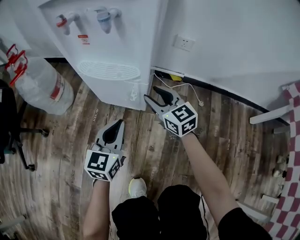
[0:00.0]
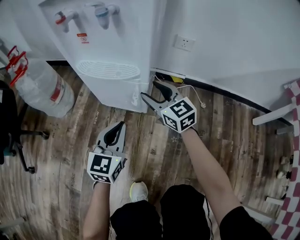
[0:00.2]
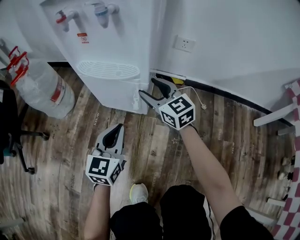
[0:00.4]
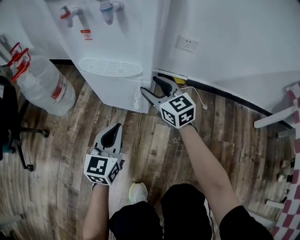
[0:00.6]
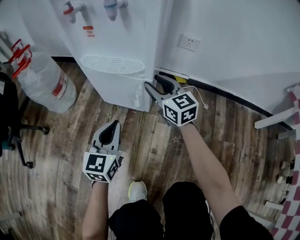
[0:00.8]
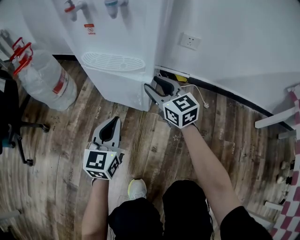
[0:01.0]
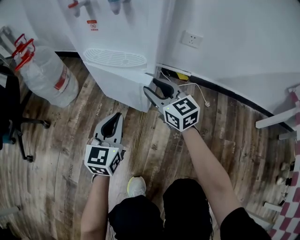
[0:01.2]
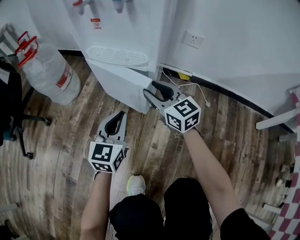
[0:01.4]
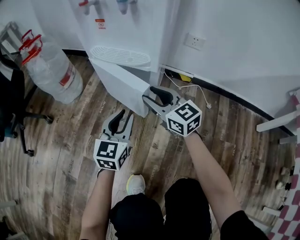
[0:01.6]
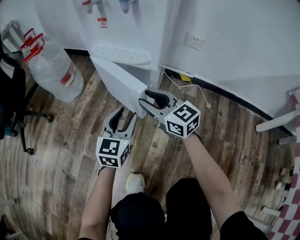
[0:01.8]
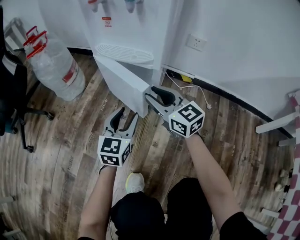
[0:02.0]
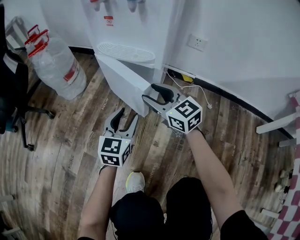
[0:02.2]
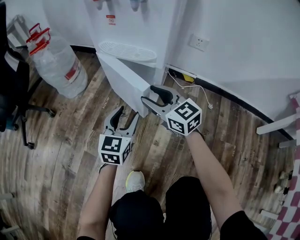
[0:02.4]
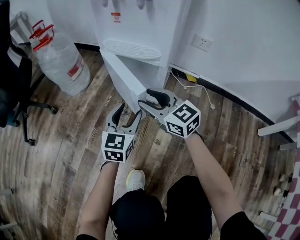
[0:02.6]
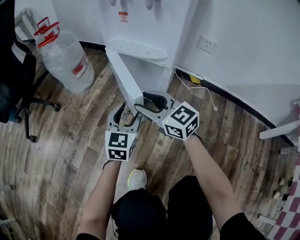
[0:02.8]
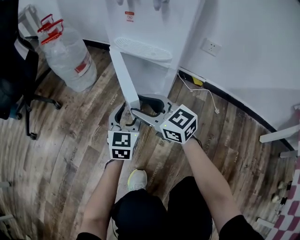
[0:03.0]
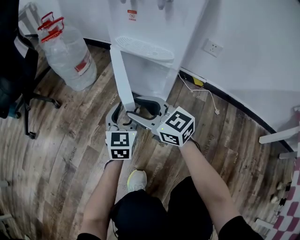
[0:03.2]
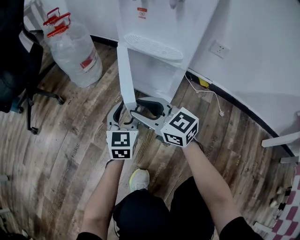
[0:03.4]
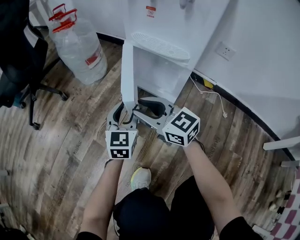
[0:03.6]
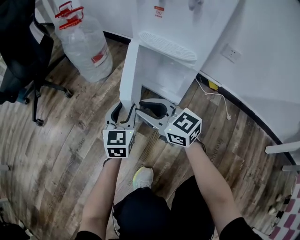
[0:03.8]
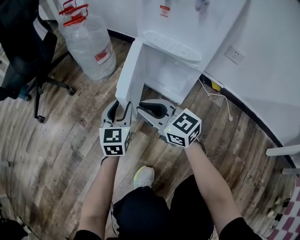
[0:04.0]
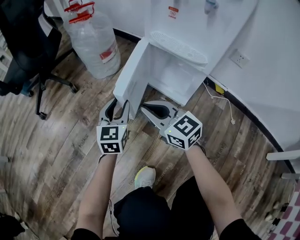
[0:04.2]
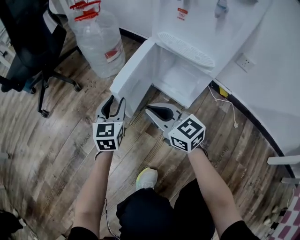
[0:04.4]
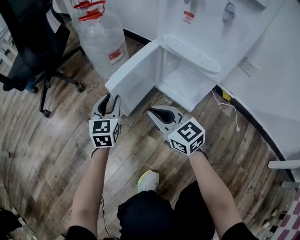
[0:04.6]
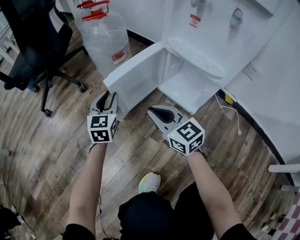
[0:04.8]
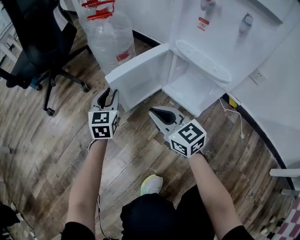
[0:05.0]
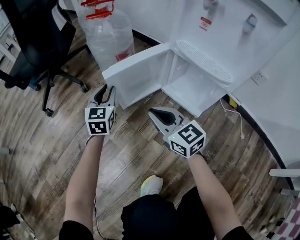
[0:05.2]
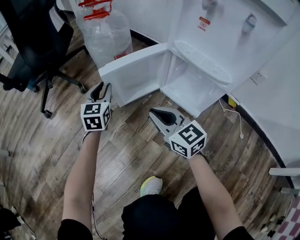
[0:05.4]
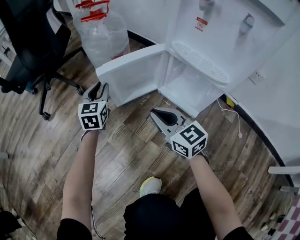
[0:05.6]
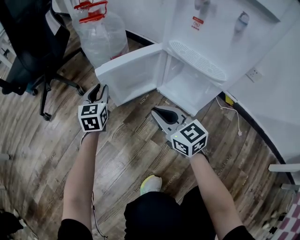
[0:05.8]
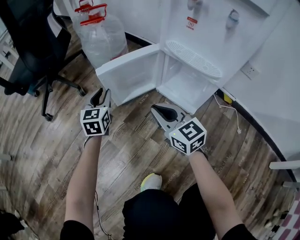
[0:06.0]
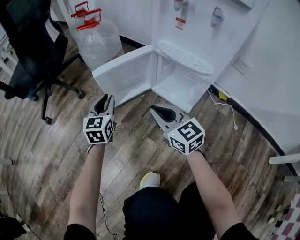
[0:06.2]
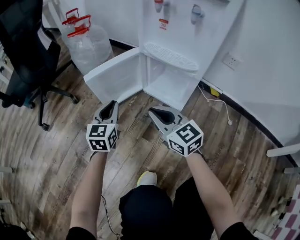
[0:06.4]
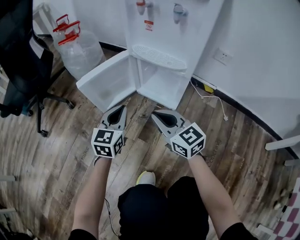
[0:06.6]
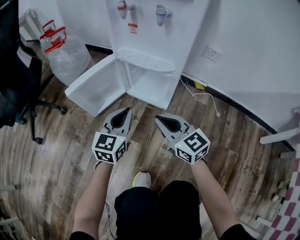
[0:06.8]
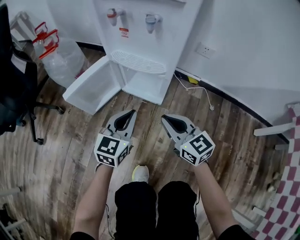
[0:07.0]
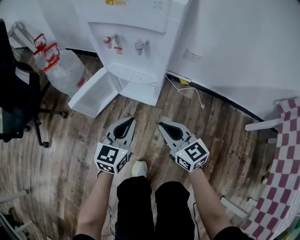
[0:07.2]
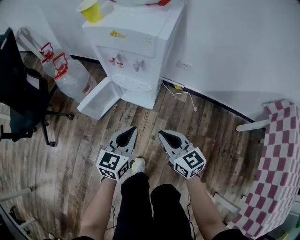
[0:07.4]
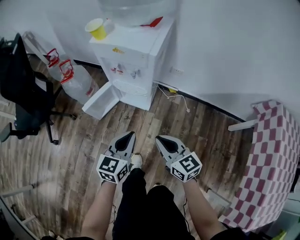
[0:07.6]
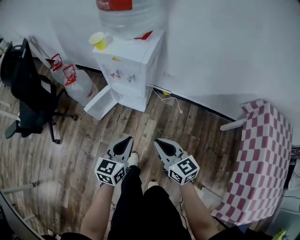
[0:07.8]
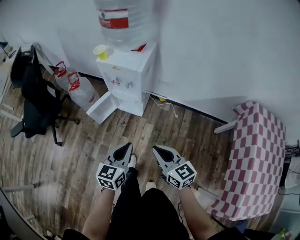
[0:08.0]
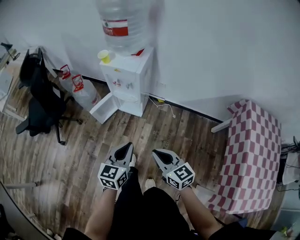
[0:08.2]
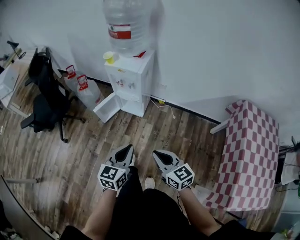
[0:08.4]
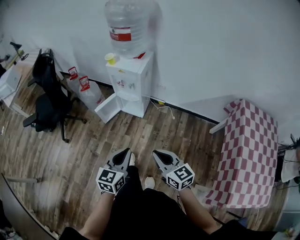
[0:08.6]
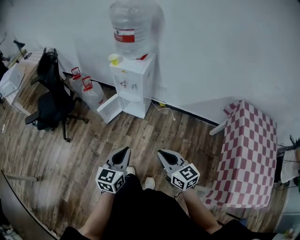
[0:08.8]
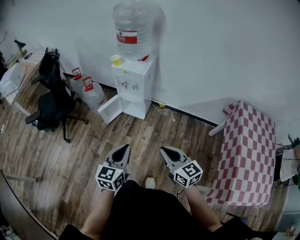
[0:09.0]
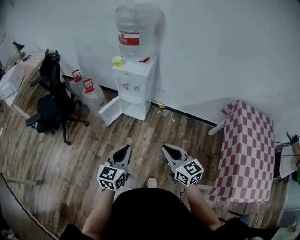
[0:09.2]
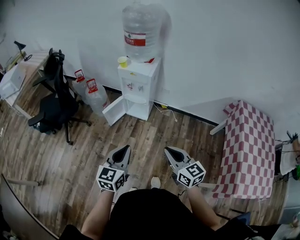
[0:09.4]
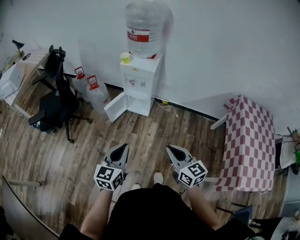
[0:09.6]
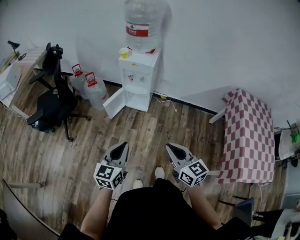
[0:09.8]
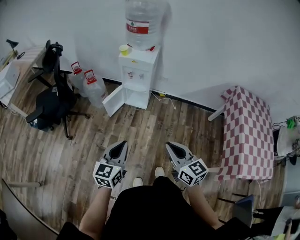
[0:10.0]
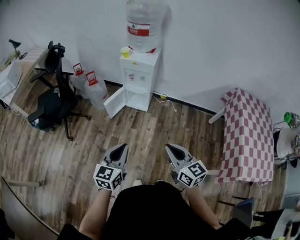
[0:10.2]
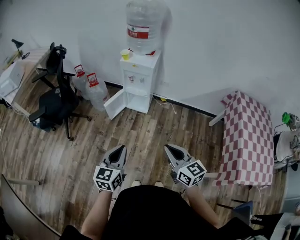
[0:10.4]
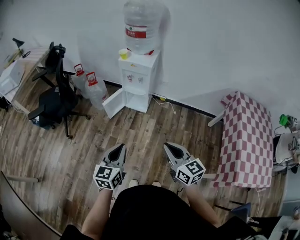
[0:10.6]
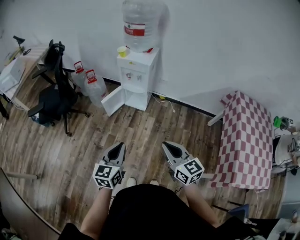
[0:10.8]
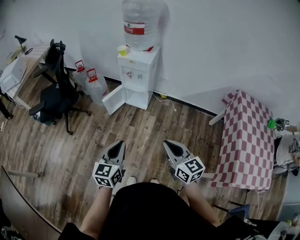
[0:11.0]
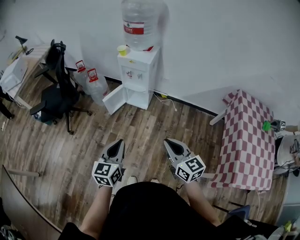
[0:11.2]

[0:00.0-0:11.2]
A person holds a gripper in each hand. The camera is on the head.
0:00.0 to 0:01.6: The right gripper ends up about 5 cm from where it was.
0:01.6 to 0:03.2: The right gripper is displaced to the left by roughly 15 cm, and swivels roughly 20 degrees; the left gripper moves to the left, roughly 5 cm, and opens its fingers.
0:03.2 to 0:04.8: The right gripper heads to the left and forward, covering about 10 cm, and closes up. The left gripper shifts roughly 25 cm to the left and forward, and closes up.
0:04.8 to 0:06.4: The left gripper goes about 10 cm backward and to the right, while the right gripper changes place by some 5 cm.
0:06.4 to 0:08.0: The two grippers go roughly 50 cm upward. The right gripper rotates approximately 20 degrees, while the left gripper turns by about 30 degrees.
0:08.0 to 0:09.6: The right gripper goes some 25 cm backward and upward; the left gripper travels backward, upward and to the left by approximately 25 cm.
0:09.6 to 0:11.2: The left gripper ends up roughly 5 cm from where it was; the right gripper ends up approximately 5 cm from where it was.

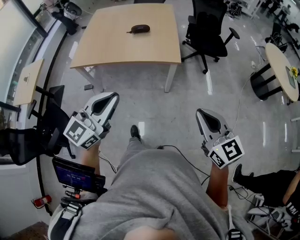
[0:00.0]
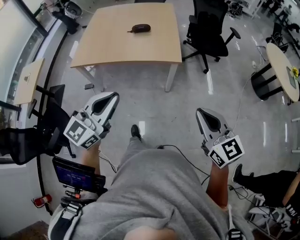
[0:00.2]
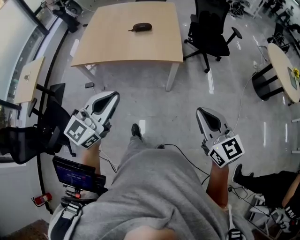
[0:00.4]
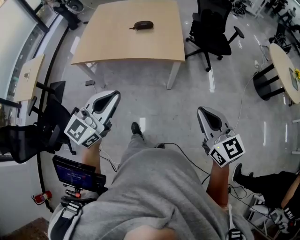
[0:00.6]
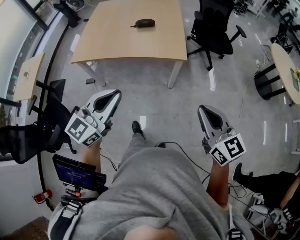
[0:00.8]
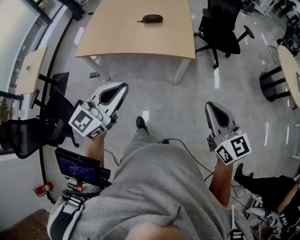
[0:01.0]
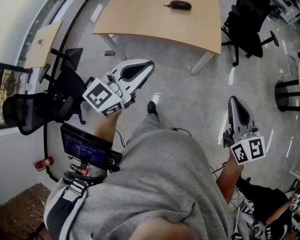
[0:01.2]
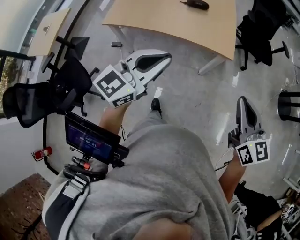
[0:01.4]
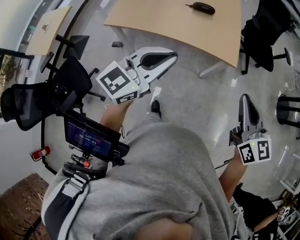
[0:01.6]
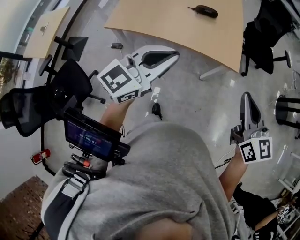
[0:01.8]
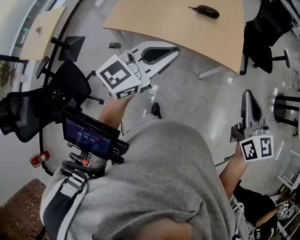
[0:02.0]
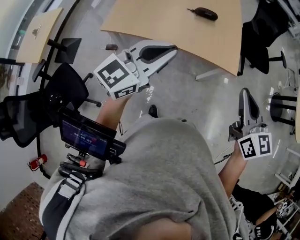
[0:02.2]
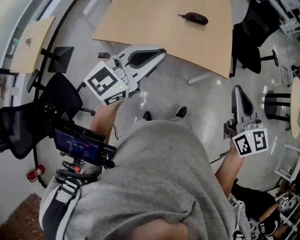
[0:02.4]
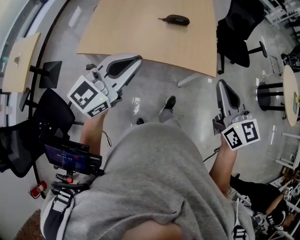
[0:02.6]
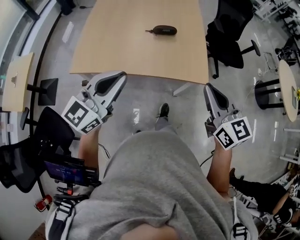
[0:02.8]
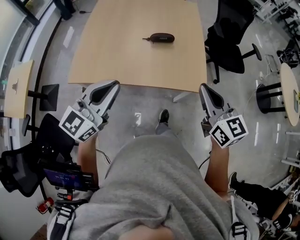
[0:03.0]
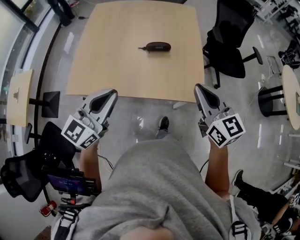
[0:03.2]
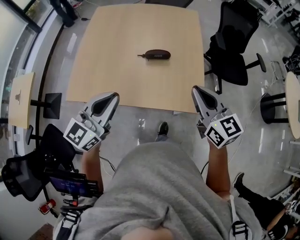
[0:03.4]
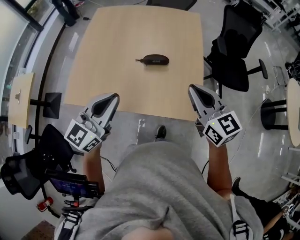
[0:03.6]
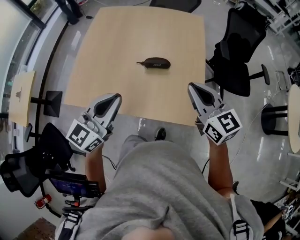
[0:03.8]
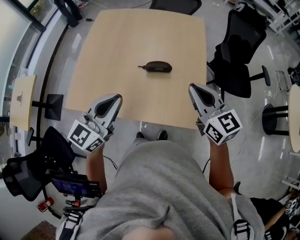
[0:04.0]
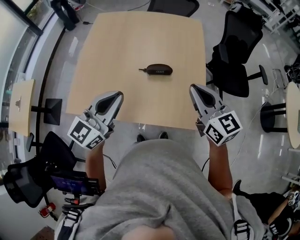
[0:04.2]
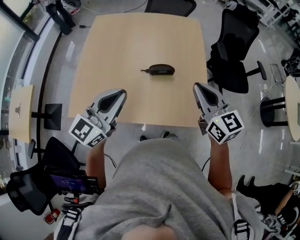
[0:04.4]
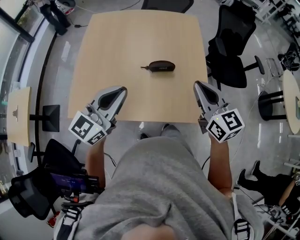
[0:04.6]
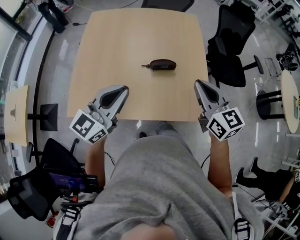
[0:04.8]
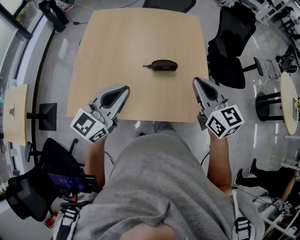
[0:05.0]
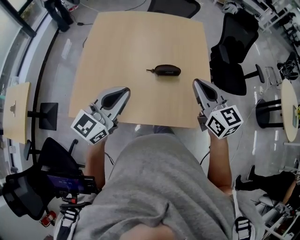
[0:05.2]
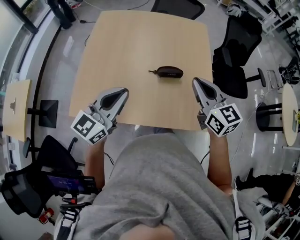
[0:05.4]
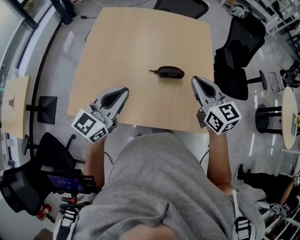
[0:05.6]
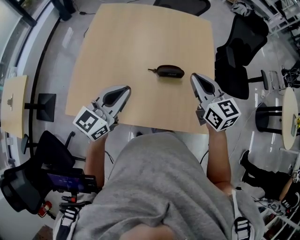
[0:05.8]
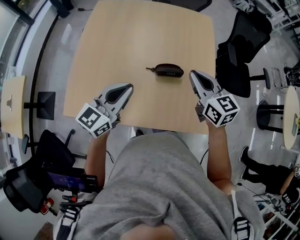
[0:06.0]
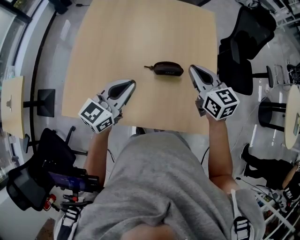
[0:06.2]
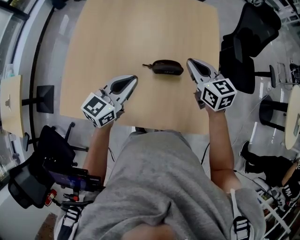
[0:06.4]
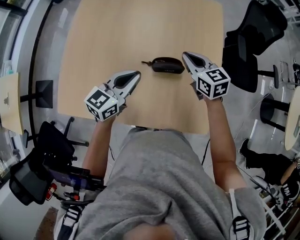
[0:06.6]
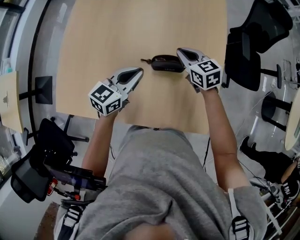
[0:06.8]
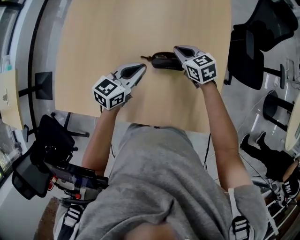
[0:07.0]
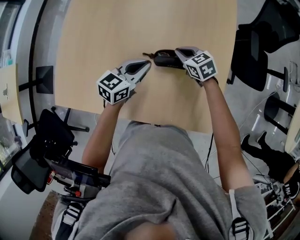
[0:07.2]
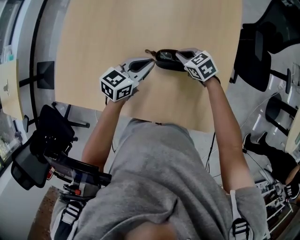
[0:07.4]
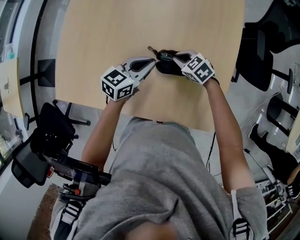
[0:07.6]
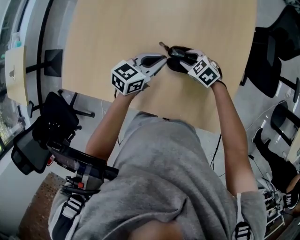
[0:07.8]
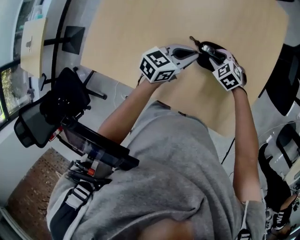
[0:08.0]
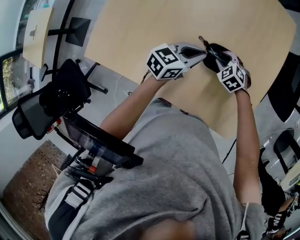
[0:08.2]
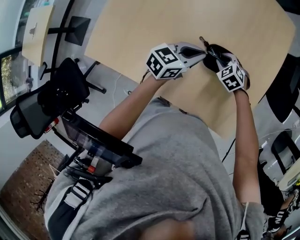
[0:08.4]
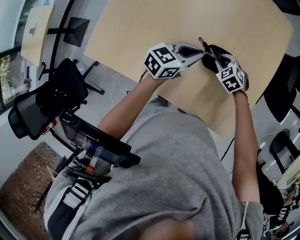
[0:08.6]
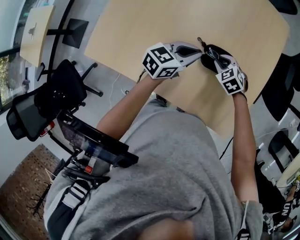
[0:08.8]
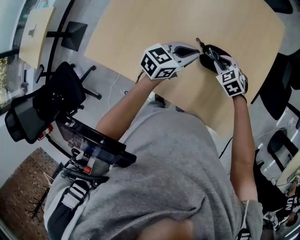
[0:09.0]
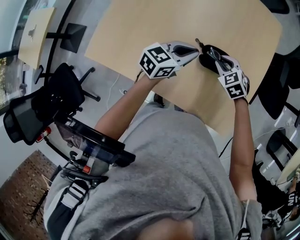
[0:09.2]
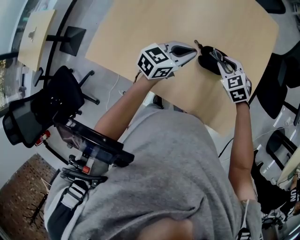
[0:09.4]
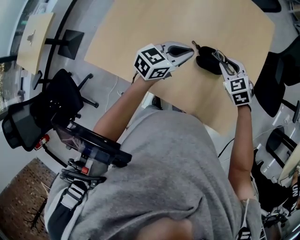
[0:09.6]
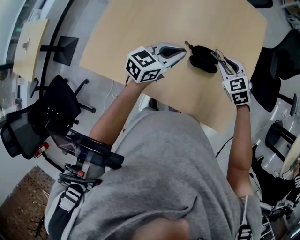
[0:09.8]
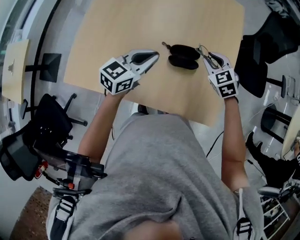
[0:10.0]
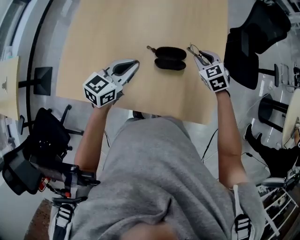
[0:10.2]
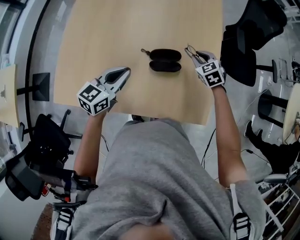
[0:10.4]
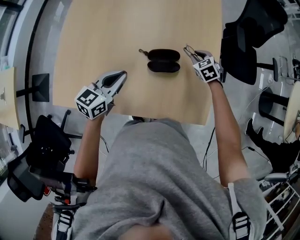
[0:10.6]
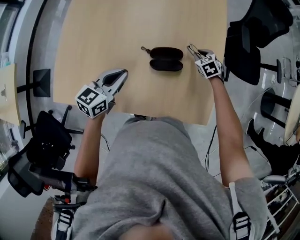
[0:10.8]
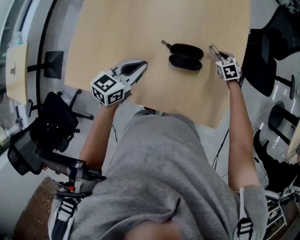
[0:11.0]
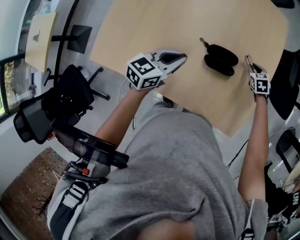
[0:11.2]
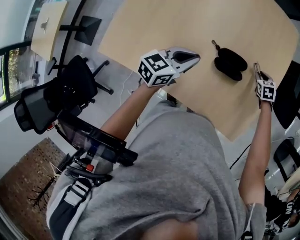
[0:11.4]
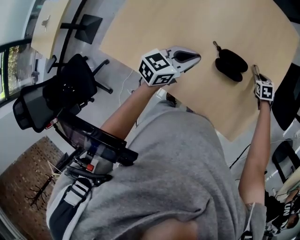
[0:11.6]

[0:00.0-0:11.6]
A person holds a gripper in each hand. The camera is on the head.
0:00.0 to 0:01.4: The two grippers go roughly 15 cm forward and to the left.
0:01.4 to 0:02.8: Both grippers travel together forward and to the left, approximately 25 cm.
0:02.8 to 0:04.4: The two grippers go roughly 30 cm forward.
0:04.4 to 0:05.8: The left gripper is displaced forward, downward and to the left by about 15 cm. Meanwhile the right gripper moves forward, to the left and downward, some 15 cm.
0:05.8 to 0:07.2: The left gripper heads downward, forward and to the right, covering roughly 25 cm, and changes its angle by roughly 20 degrees. Meanwhile the right gripper moves downward and forward, roughly 35 cm, and tilts its fingers about 30 degrees downward.
0:07.2 to 0:08.8: The right gripper travels backward by some 10 cm, swivels approximately 30 degrees, and opens.
0:08.8 to 0:10.2: The left gripper shifts approximately 10 cm upward and backward, while the right gripper moves upward and to the right, approximately 15 cm, and turns by some 20 degrees.
0:10.2 to 0:11.6: The right gripper moves downward, forward and to the right, some 20 cm, and changes its angle by some 20 degrees.

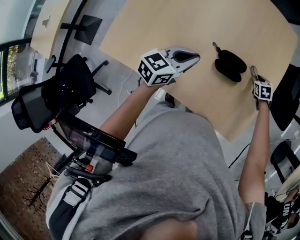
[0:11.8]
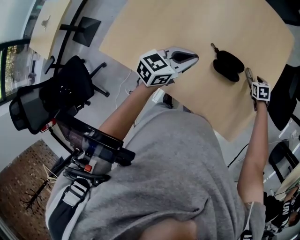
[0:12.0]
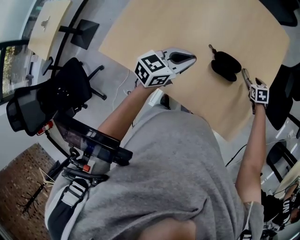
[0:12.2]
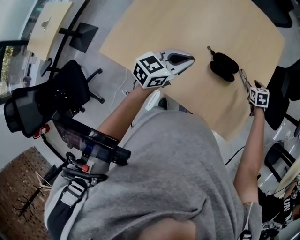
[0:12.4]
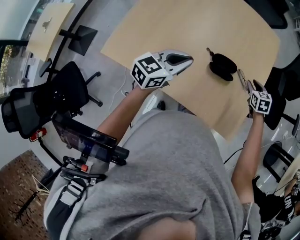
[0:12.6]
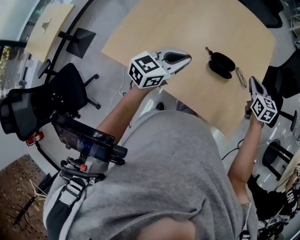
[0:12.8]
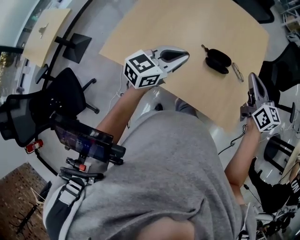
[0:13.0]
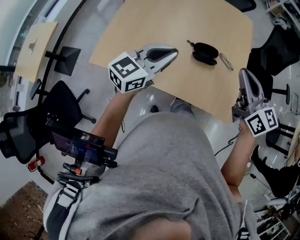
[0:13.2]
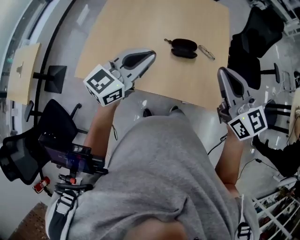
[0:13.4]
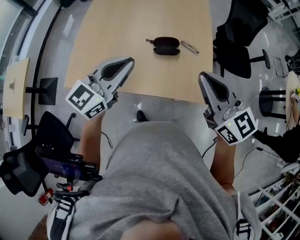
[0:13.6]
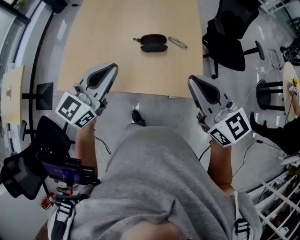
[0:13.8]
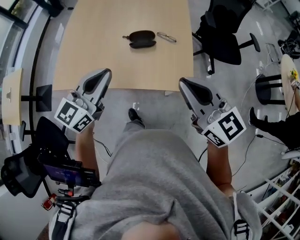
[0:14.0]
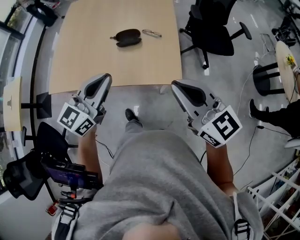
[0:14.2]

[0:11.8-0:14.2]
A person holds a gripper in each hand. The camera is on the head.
0:11.8 to 0:13.0: The right gripper moves upward and backward, roughly 40 cm, angles its fingers upward, by approximately 50 degrees, and closes up. Meanwhile the left gripper travels backward and upward by approximately 15 cm.
0:13.0 to 0:14.2: The two grippers go about 35 cm backward and to the right.
